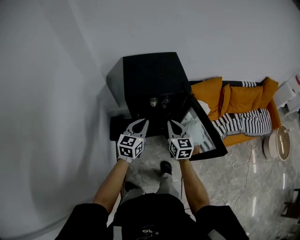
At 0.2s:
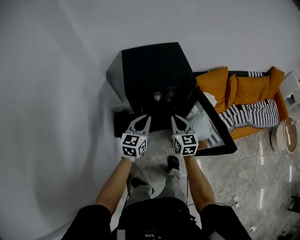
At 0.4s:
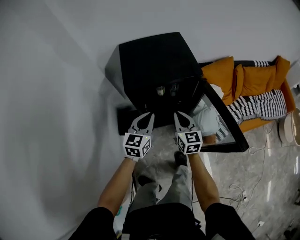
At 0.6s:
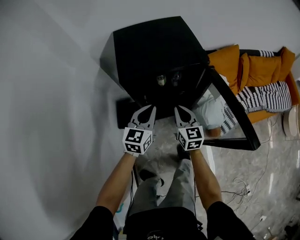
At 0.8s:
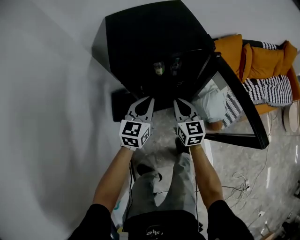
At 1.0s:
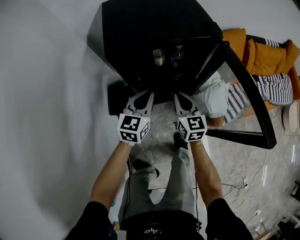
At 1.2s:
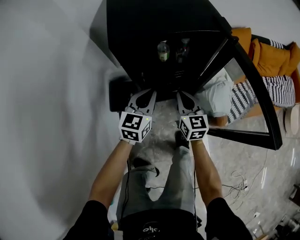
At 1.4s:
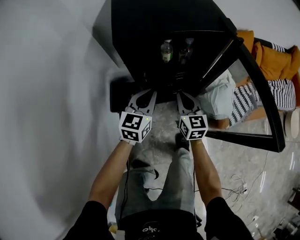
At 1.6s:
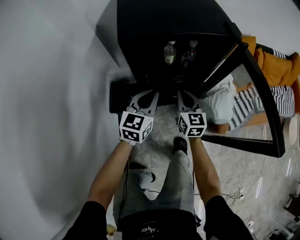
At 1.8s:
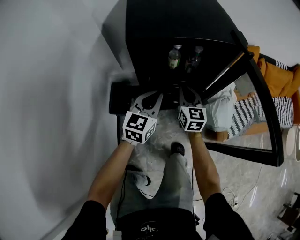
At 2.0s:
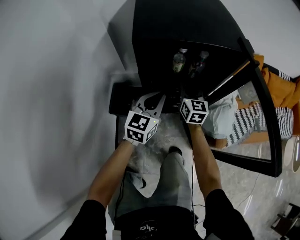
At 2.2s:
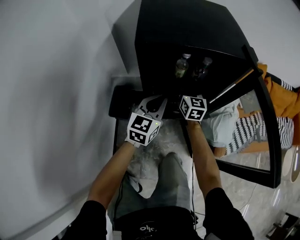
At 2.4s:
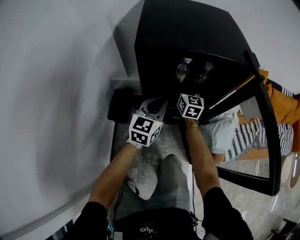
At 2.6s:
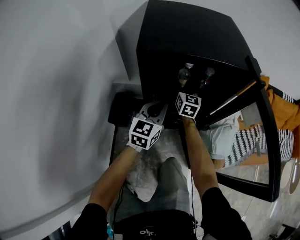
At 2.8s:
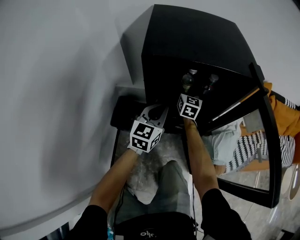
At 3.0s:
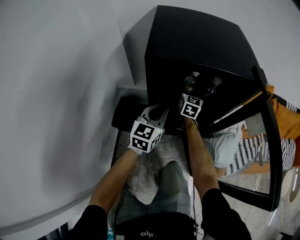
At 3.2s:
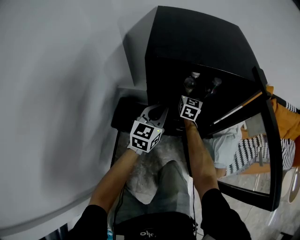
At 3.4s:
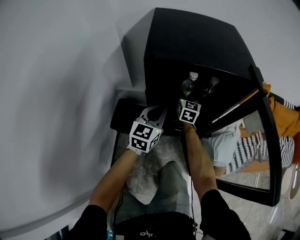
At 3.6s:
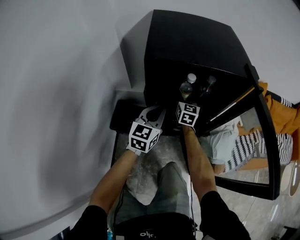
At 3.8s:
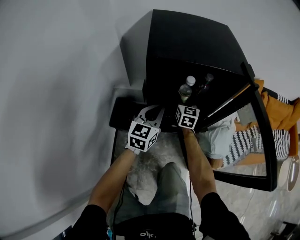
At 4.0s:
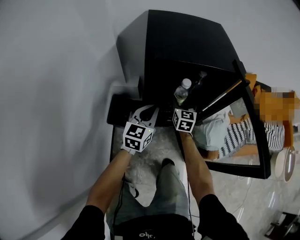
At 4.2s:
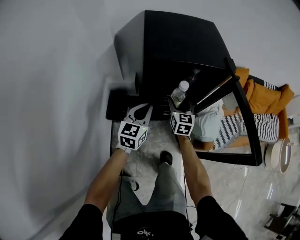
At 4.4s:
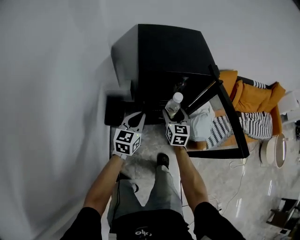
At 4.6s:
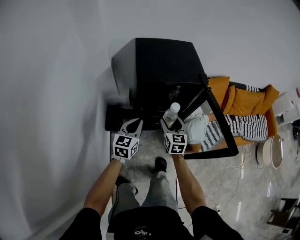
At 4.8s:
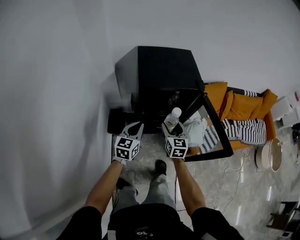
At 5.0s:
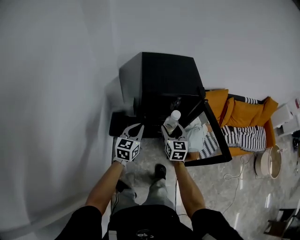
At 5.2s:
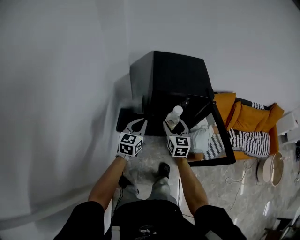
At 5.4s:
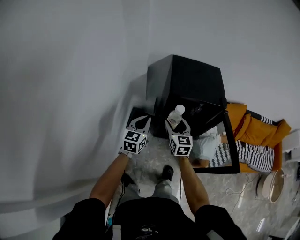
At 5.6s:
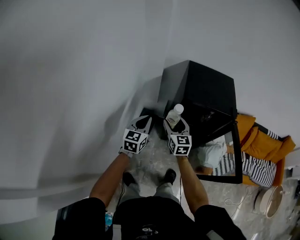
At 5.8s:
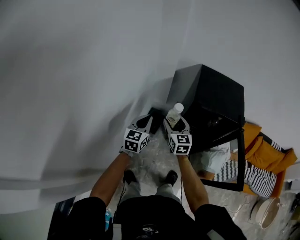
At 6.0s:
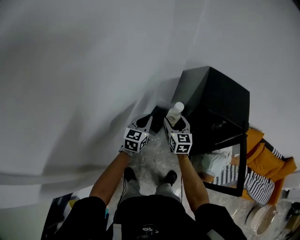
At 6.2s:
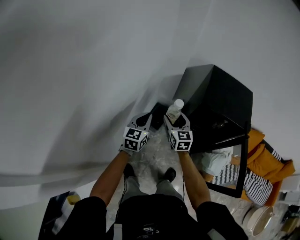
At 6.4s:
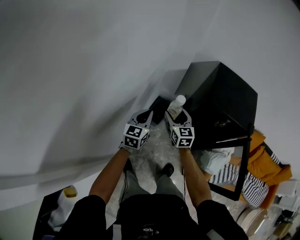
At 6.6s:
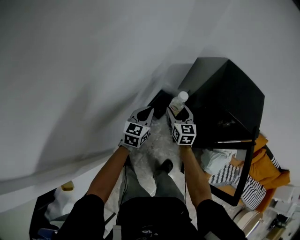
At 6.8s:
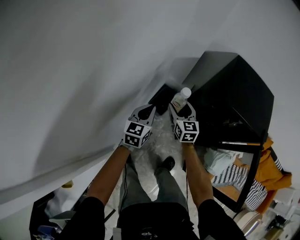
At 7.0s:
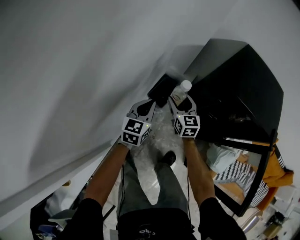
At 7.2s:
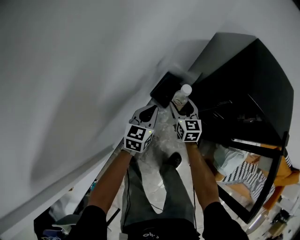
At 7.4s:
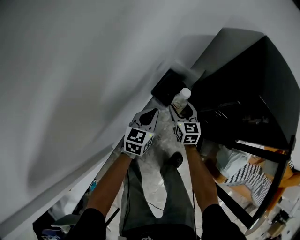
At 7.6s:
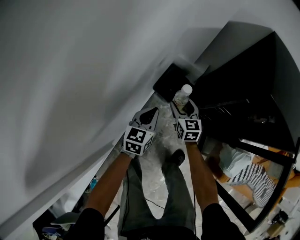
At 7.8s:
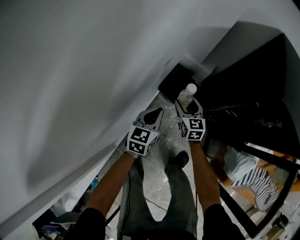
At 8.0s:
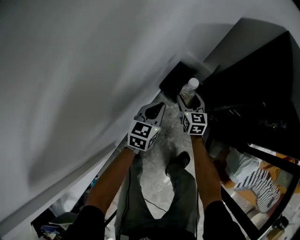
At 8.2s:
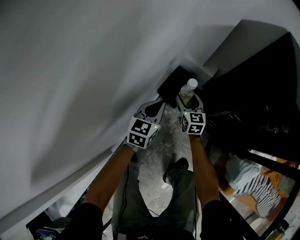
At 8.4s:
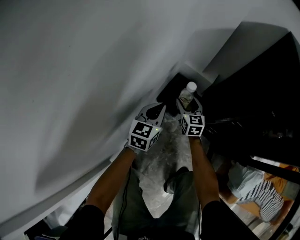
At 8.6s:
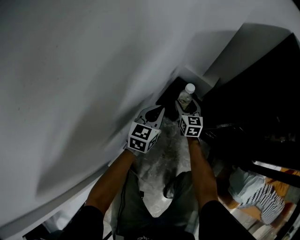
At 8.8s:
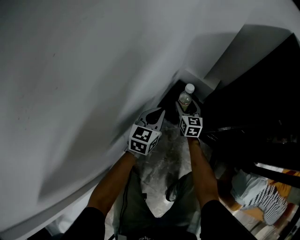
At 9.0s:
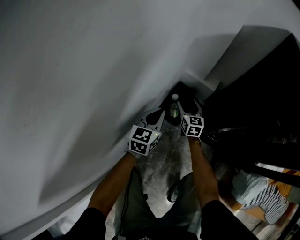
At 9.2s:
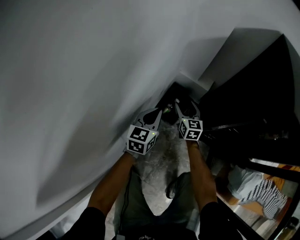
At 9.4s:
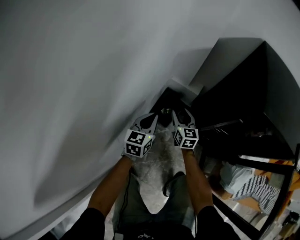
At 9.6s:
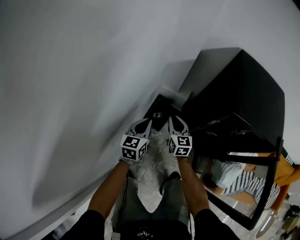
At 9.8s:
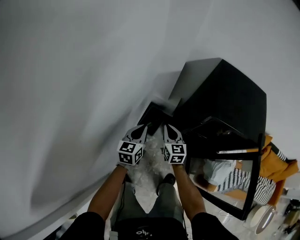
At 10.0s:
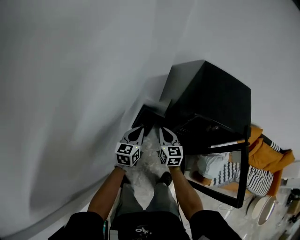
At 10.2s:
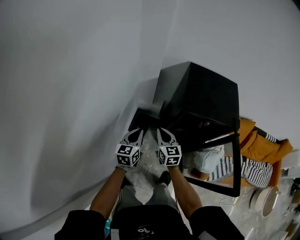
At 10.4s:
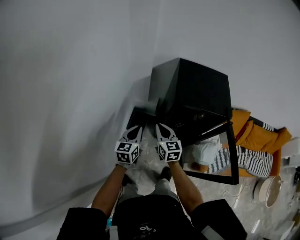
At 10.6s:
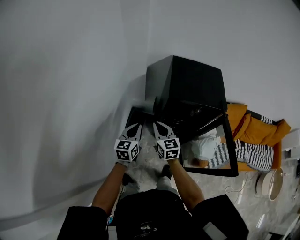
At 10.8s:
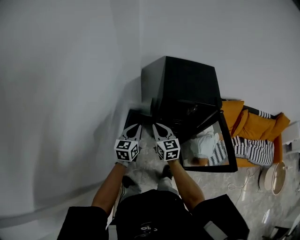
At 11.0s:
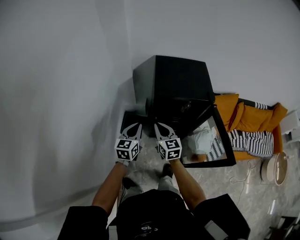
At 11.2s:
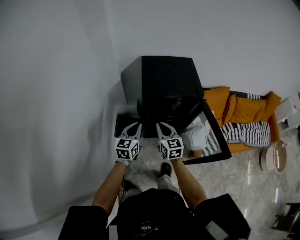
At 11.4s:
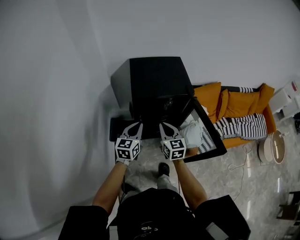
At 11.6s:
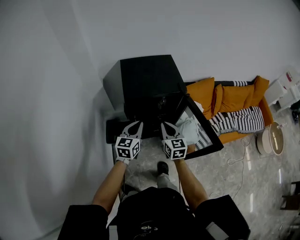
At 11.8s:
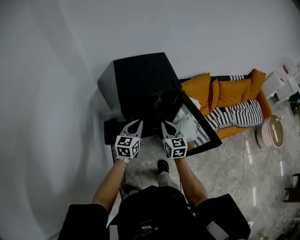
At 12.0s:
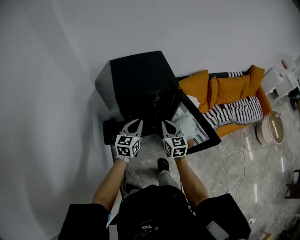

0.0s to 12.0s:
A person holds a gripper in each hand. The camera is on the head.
0.0s to 1.6s: Both grippers travel together downward, some 25 cm.
1.6s to 3.0s: The left gripper moves forward, approximately 5 cm. The right gripper moves forward, about 20 cm, and opens up.
3.0s to 4.4s: The right gripper travels backward and upward by some 25 cm. Meanwhile the left gripper shifts approximately 15 cm backward and upward.
4.4s to 6.0s: The right gripper changes place by about 35 cm, and rotates about 30 degrees. The left gripper moves roughly 30 cm, and swivels some 30 degrees.
6.0s to 7.6s: Both grippers move downward, approximately 35 cm.
7.6s to 9.0s: The left gripper moves forward and downward, approximately 15 cm; the right gripper shifts roughly 20 cm downward and forward.
9.0s to 10.4s: The right gripper goes approximately 50 cm upward and backward, and closes its fingers, while the left gripper heads upward, covering approximately 40 cm.
10.4s to 12.0s: The right gripper changes place by approximately 30 cm, and rotates roughly 30 degrees; the left gripper ends up approximately 25 cm from where it was, and turns by some 30 degrees.

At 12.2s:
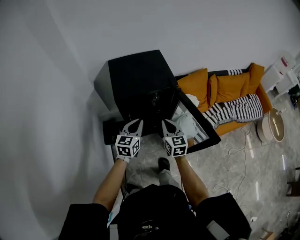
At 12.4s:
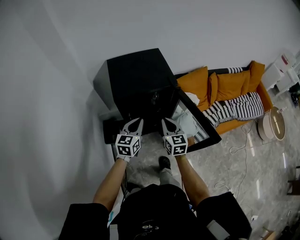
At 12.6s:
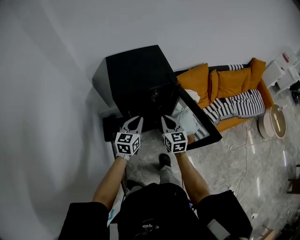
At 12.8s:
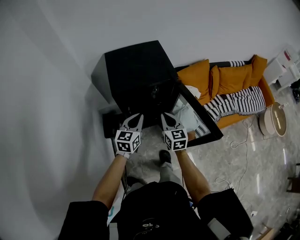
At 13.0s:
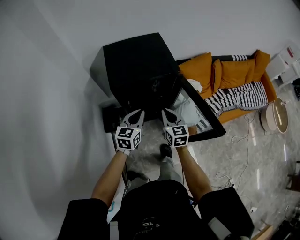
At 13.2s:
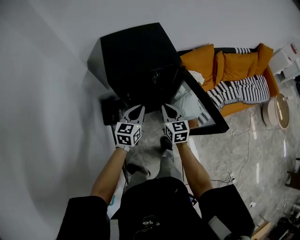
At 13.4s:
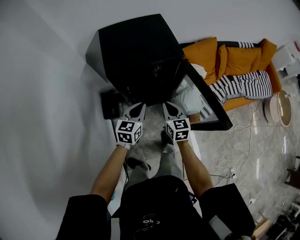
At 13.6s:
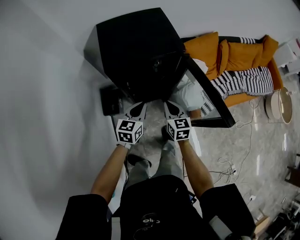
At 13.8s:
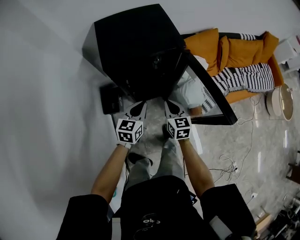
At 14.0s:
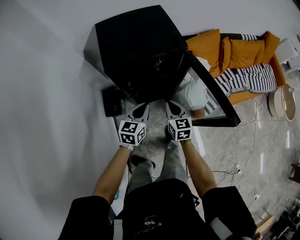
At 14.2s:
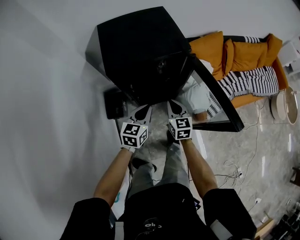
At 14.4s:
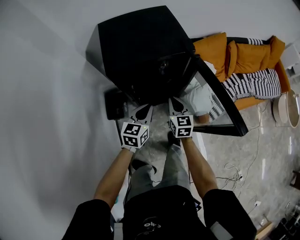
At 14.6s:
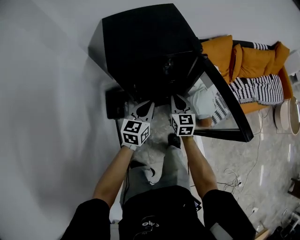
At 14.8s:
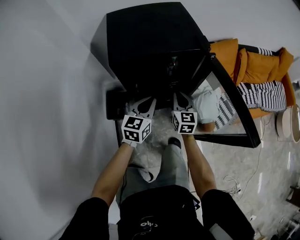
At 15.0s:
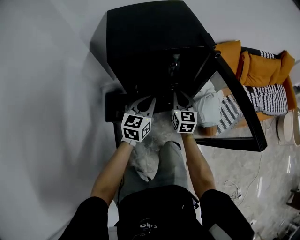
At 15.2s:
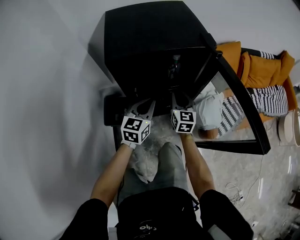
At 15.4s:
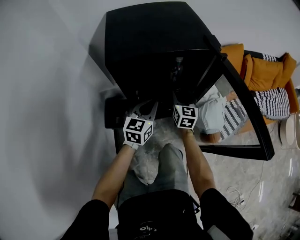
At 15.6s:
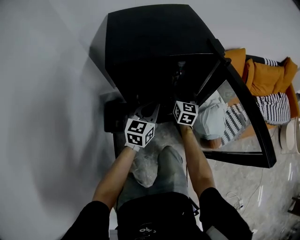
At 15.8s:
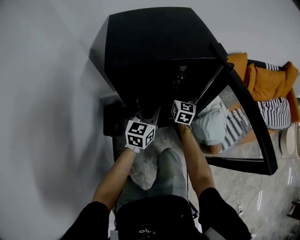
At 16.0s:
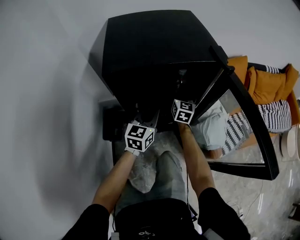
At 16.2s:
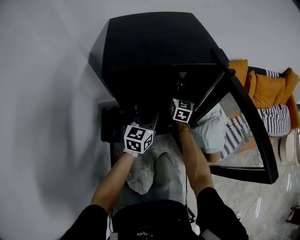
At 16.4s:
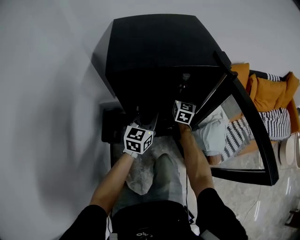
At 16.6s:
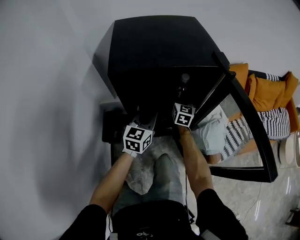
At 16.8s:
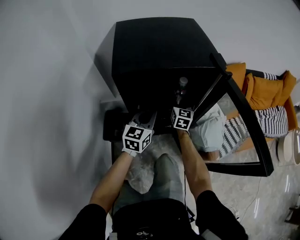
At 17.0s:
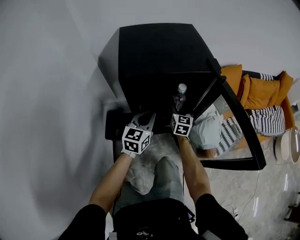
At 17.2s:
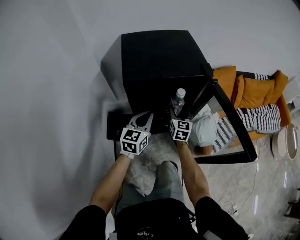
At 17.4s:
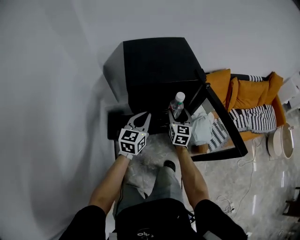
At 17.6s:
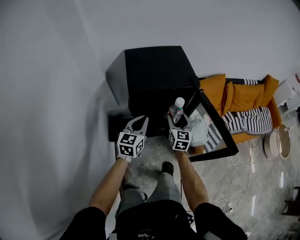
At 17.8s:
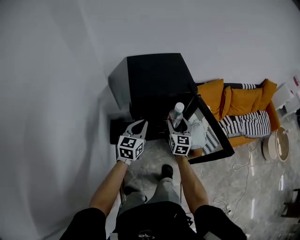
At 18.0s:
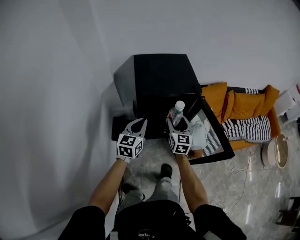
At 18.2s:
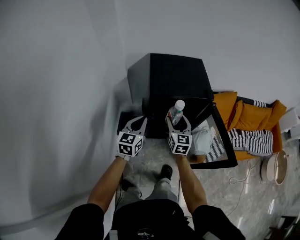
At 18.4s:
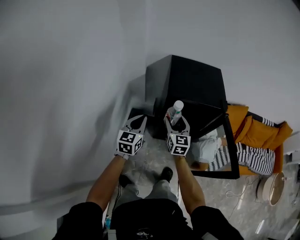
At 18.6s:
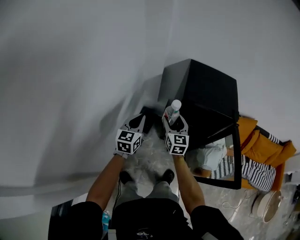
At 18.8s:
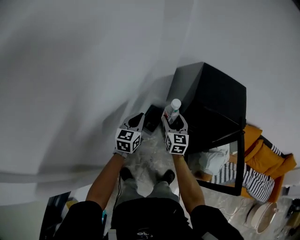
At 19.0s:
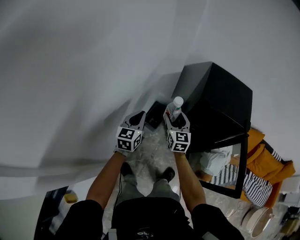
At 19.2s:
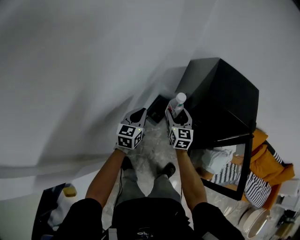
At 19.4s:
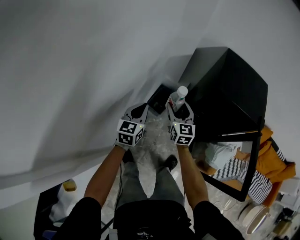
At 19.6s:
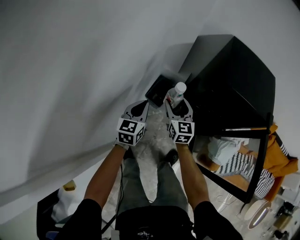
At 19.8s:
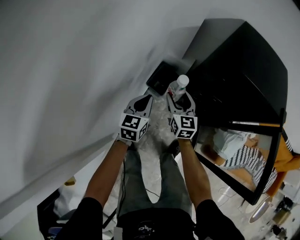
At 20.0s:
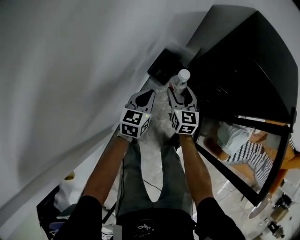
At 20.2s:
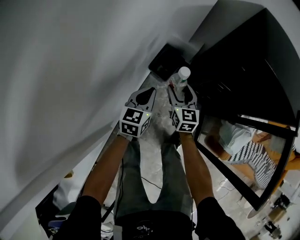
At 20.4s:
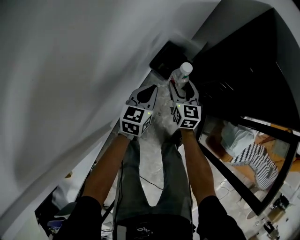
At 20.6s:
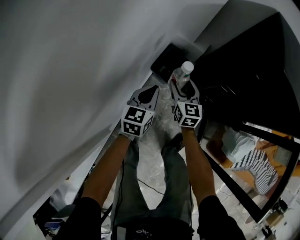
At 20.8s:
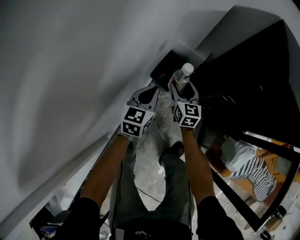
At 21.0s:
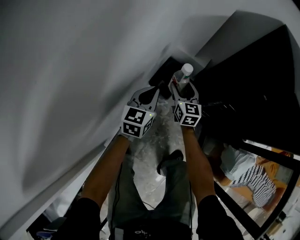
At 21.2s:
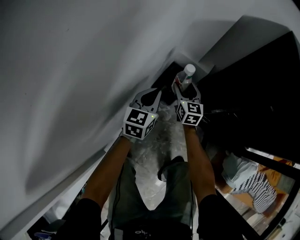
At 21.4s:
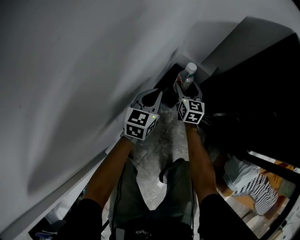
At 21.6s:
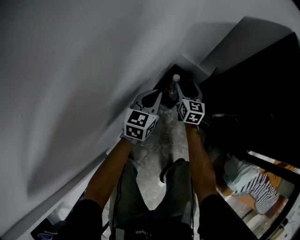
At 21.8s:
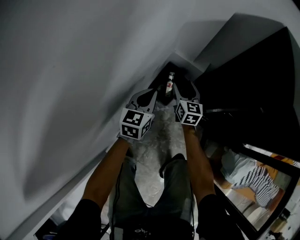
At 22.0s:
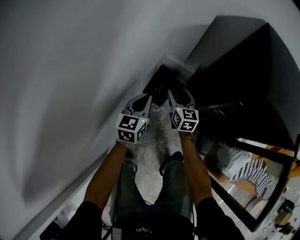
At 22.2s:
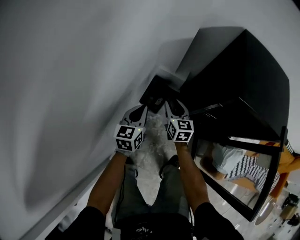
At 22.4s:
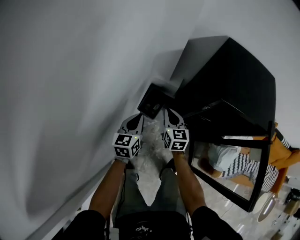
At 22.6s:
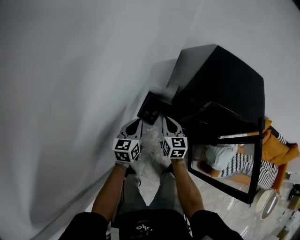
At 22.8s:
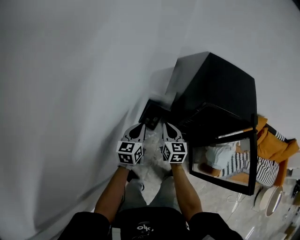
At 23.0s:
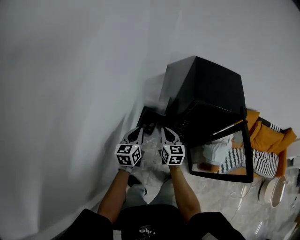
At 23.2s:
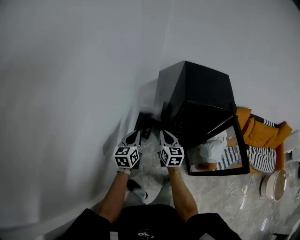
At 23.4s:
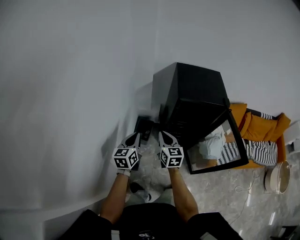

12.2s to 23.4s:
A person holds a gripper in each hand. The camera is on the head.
12.2s to 13.8s: The two grippers go about 10 cm downward.
13.8s to 15.4s: The right gripper travels forward and downward by approximately 20 cm, and opens up. Meanwhile the left gripper heads downward and forward, covering roughly 15 cm.
15.4s to 17.0s: The right gripper goes forward and returns, roughly 10 cm each way.
17.0s to 18.6s: The right gripper ends up roughly 40 cm from where it was, and changes its angle by some 30 degrees, while the left gripper moves roughly 35 cm, and swivels some 30 degrees.
18.6s to 20.2s: The grippers both shift downward by approximately 30 cm.
20.2s to 21.8s: Both grippers travel together forward and downward, about 20 cm.
21.8s to 23.4s: Both grippers move upward and backward, about 50 cm. The right gripper closes its fingers.

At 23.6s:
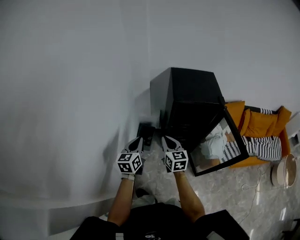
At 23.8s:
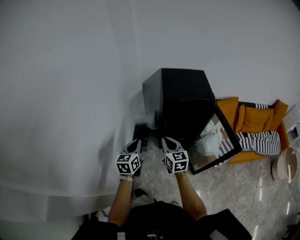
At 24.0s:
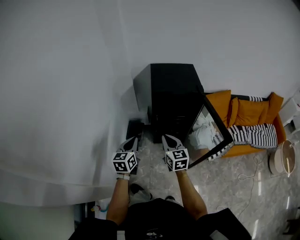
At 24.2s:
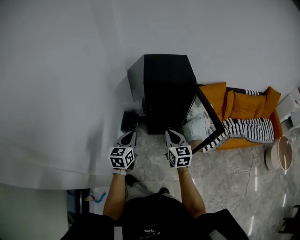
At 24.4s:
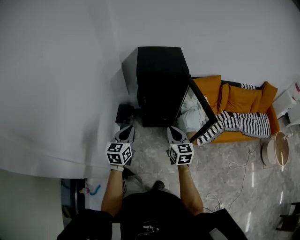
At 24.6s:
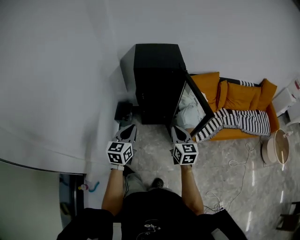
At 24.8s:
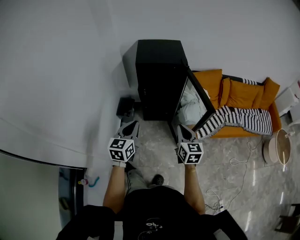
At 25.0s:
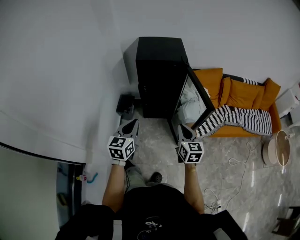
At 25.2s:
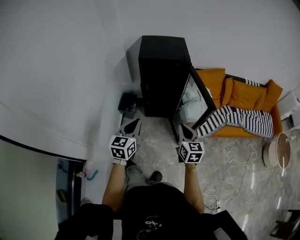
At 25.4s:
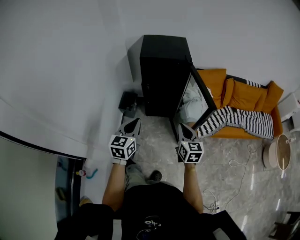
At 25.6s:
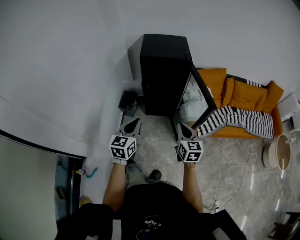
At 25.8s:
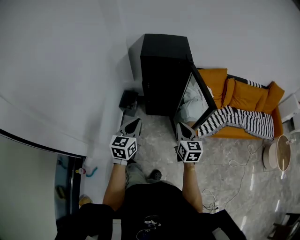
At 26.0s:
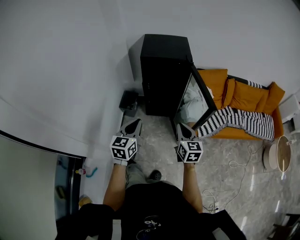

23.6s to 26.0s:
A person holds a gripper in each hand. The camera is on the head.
23.6s to 24.8s: The two grippers go some 35 cm to the right and backward.
24.8s to 26.0s: The grippers stay close to where they were, moving slightly.
